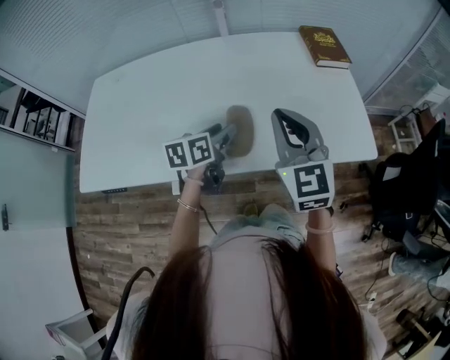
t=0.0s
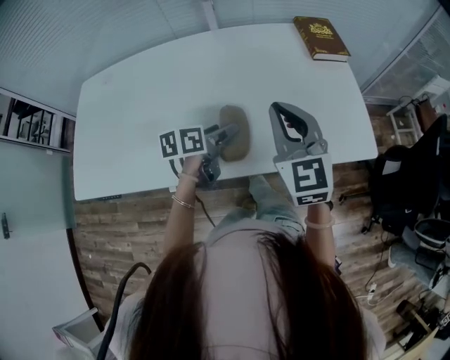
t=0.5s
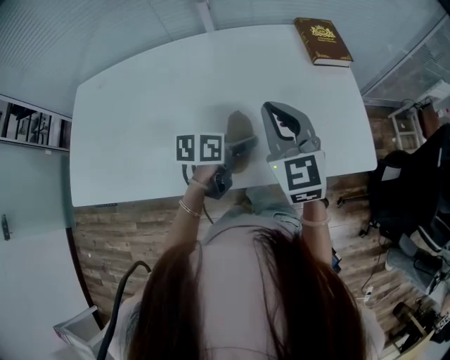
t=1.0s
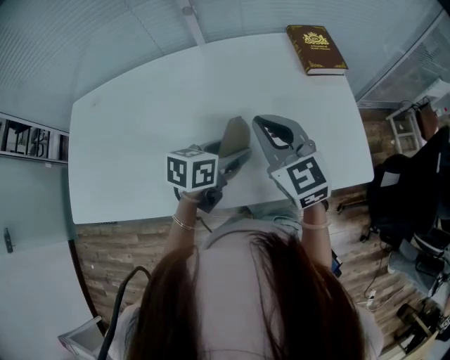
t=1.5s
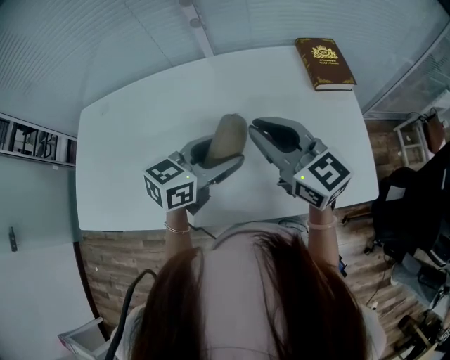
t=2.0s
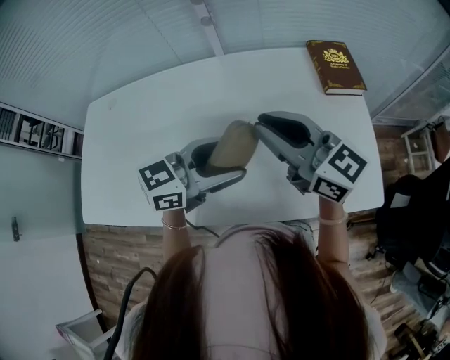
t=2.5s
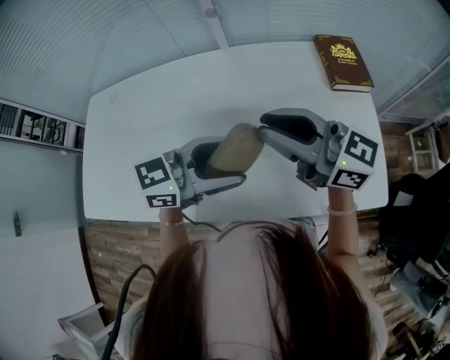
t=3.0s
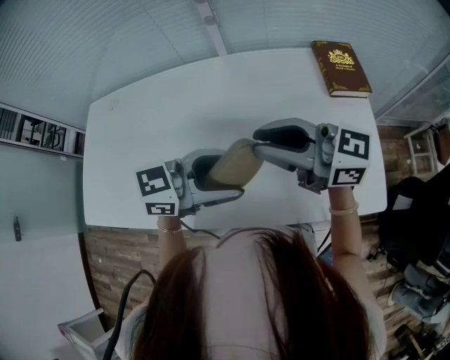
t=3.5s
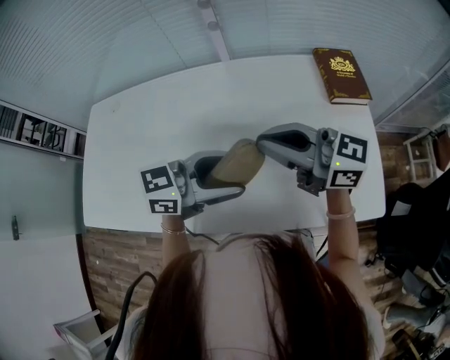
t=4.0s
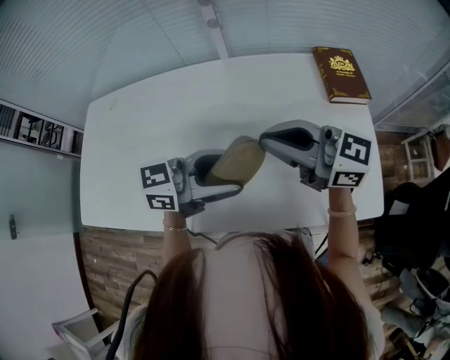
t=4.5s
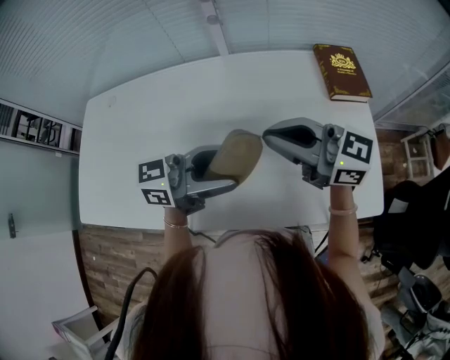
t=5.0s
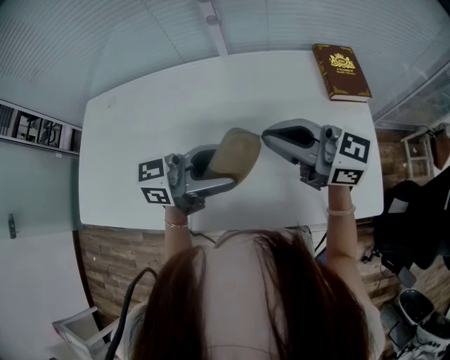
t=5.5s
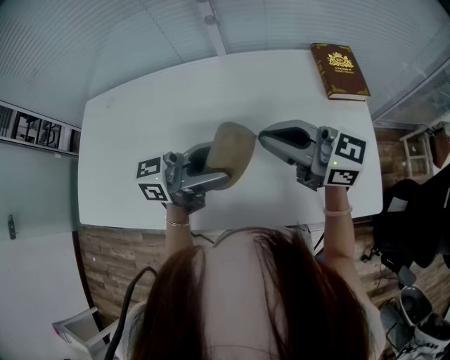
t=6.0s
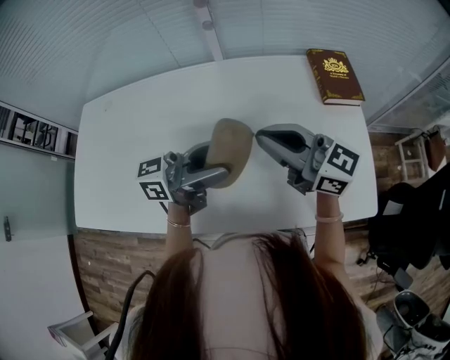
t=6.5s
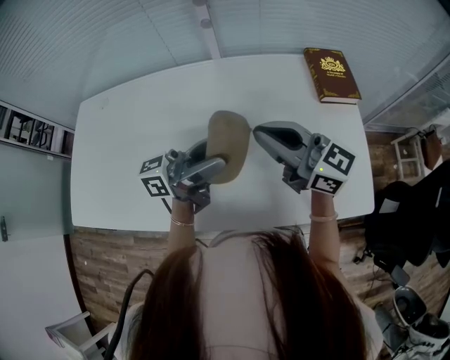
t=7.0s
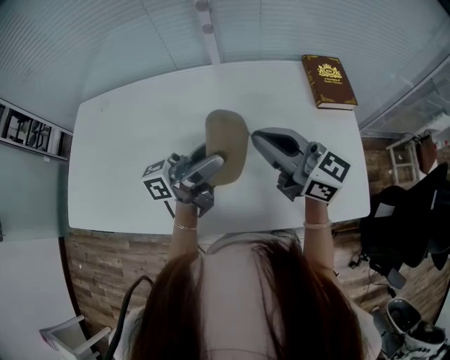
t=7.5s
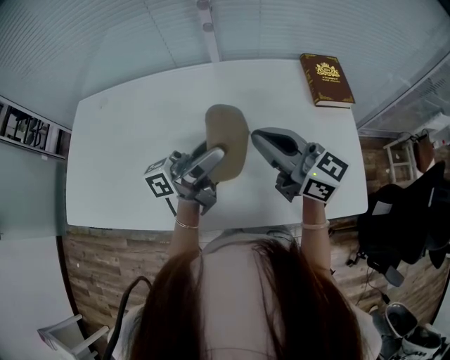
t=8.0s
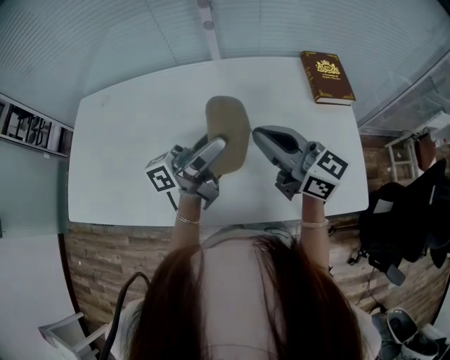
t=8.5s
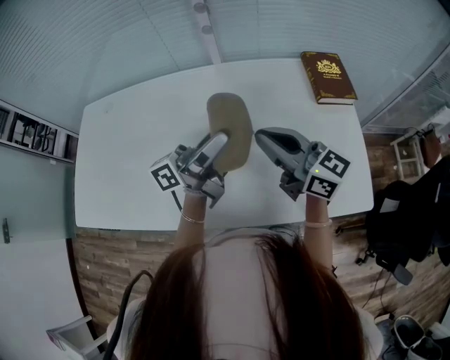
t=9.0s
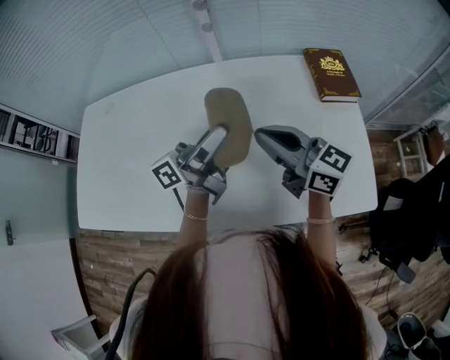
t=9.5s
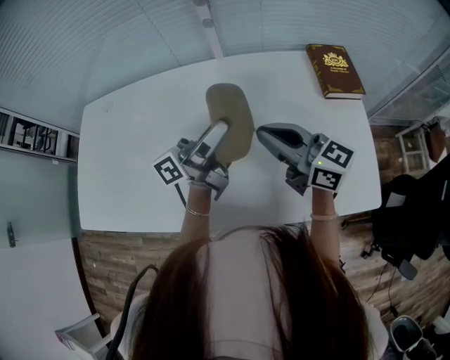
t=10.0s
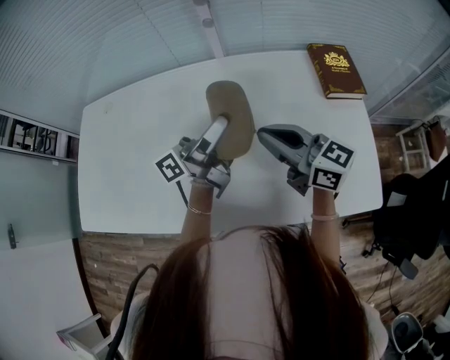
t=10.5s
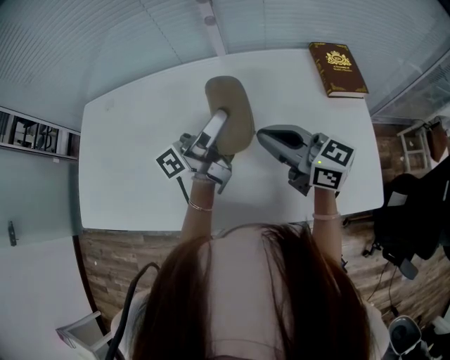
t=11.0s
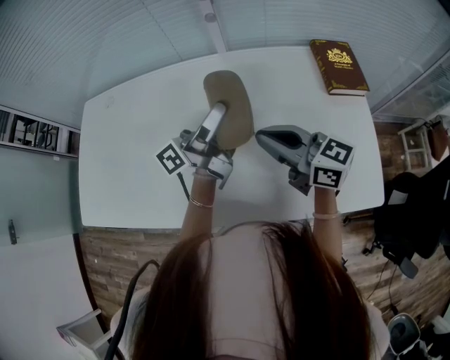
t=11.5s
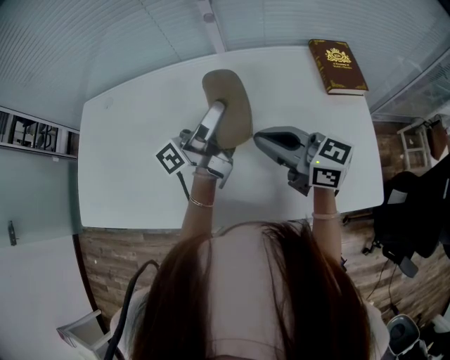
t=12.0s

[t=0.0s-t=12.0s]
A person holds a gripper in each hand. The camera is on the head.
t=0.0s to t=2.0s: The left gripper is displaced forward, upward and to the right by some 15 cm, and changes its angle by some 30 degrees; the right gripper heads forward, covering approximately 15 cm, and swivels about 30 degrees.
t=2.0s to t=4.0s: The right gripper changes its angle by about 30 degrees, while the left gripper rotates approximately 20 degrees.
t=4.0s to t=6.0s: The left gripper swivels some 20 degrees.
t=6.0s to t=8.0s: The left gripper turns by about 30 degrees.
t=8.0s to t=10.0s: The left gripper goes about 5 cm forward.
t=10.0s to t=12.0s: There are only small adjustments of the grippers.

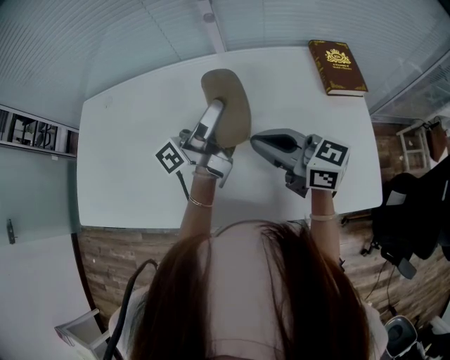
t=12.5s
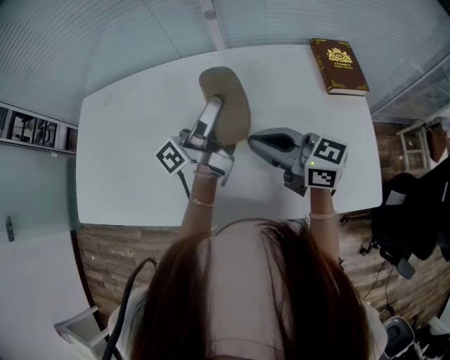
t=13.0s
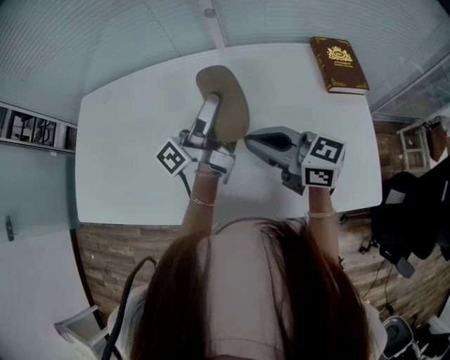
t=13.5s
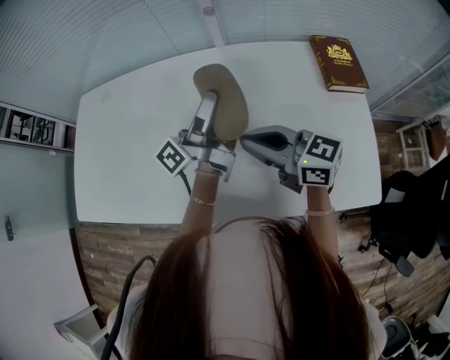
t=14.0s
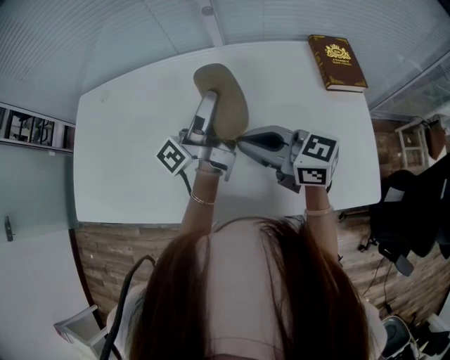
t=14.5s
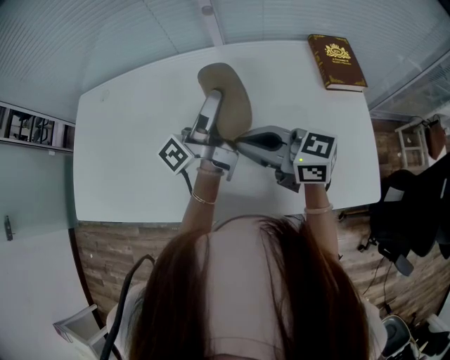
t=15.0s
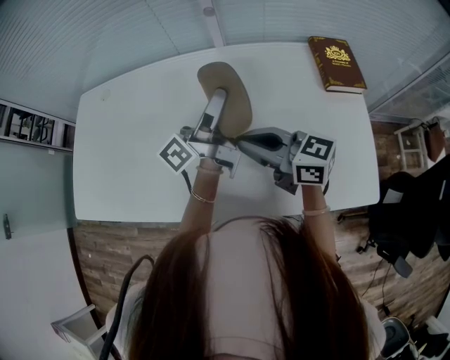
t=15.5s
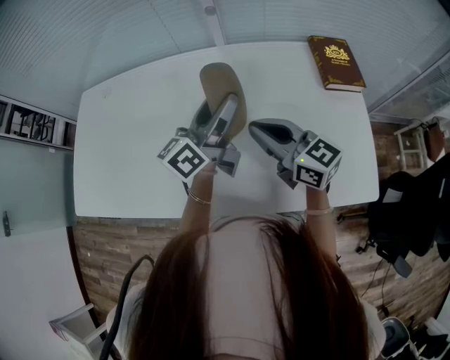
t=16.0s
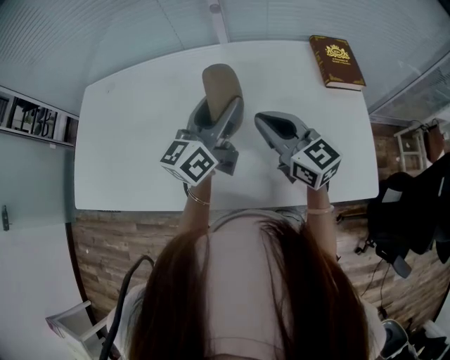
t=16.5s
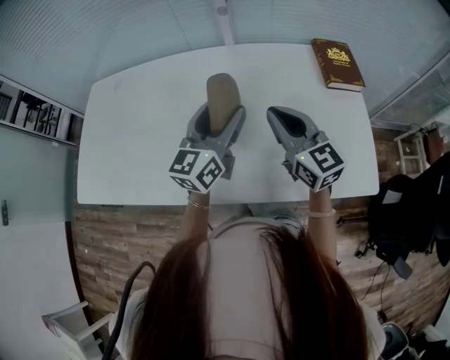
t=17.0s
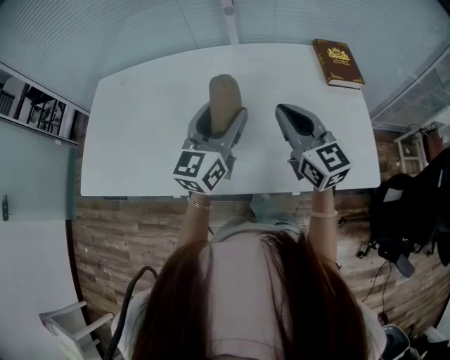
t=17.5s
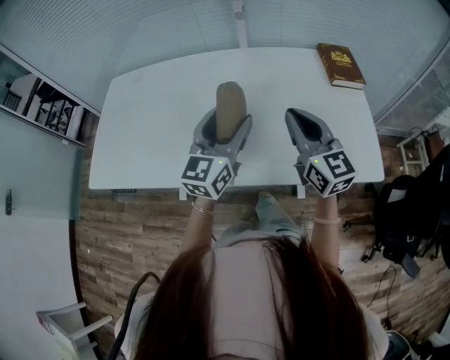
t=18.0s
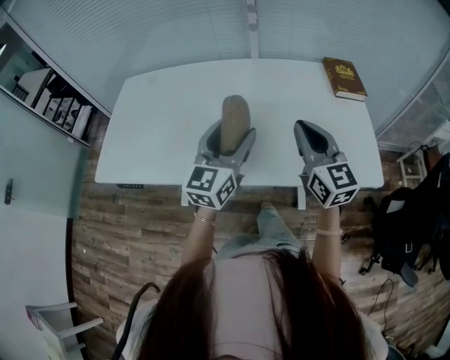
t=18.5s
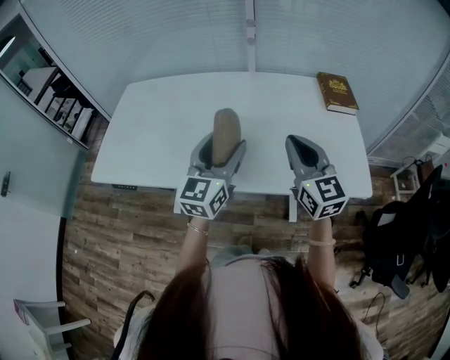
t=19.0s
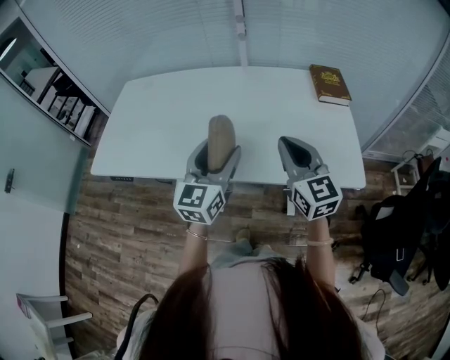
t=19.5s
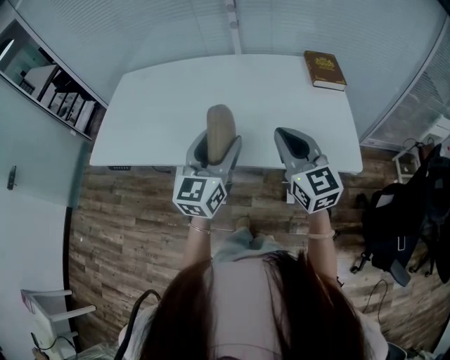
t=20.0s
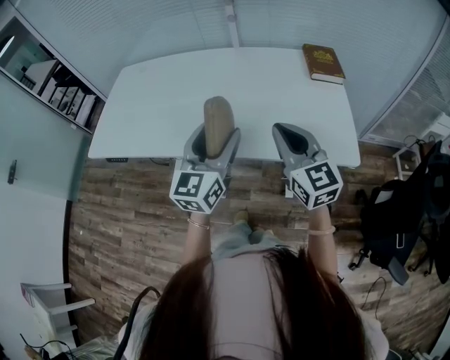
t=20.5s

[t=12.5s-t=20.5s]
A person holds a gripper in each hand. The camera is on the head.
t=12.5s to t=14.5s: The grippers move only a little.
t=14.5s to t=16.5s: The left gripper rotates around the line of its fingers by approximately 50 degrees, clockwise from behind. Meanwhile the right gripper swivels some 30 degrees.
t=16.5s to t=18.5s: The left gripper is displaced backward and to the left by about 20 cm, and changes its angle by approximately 30 degrees; the right gripper is displaced backward and upward by roughly 15 cm, and swivels approximately 20 degrees.
t=18.5s to t=20.5s: Both grippers travel together backward and to the right, some 10 cm.

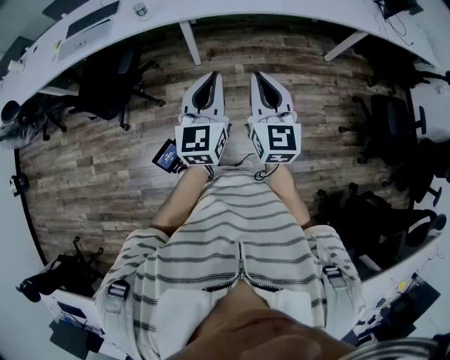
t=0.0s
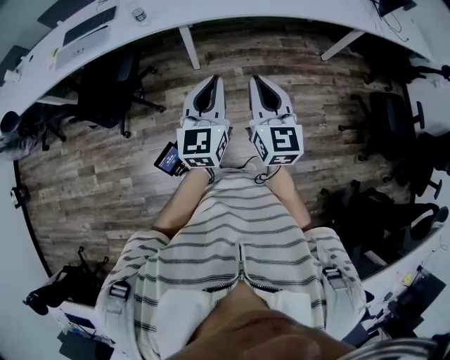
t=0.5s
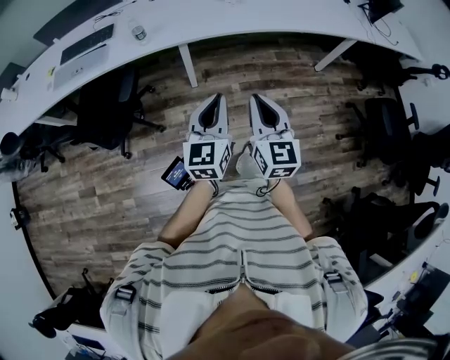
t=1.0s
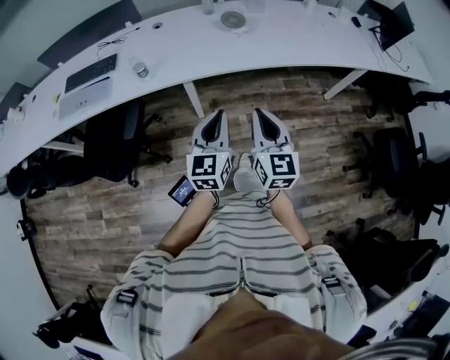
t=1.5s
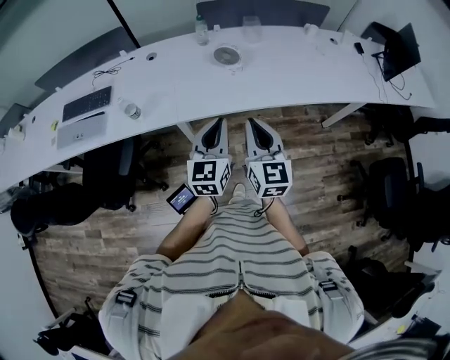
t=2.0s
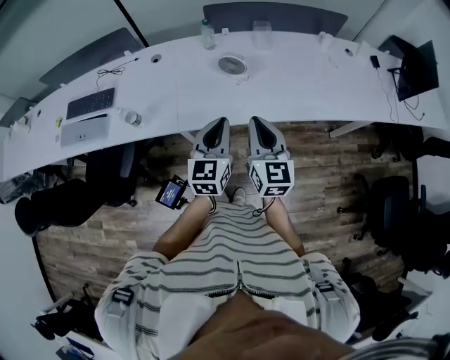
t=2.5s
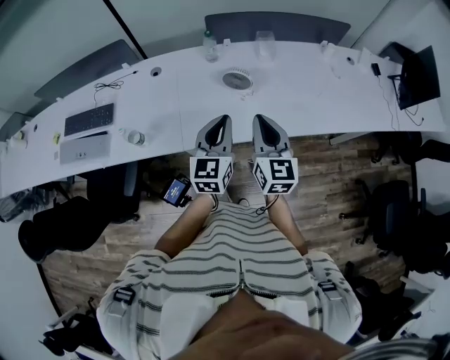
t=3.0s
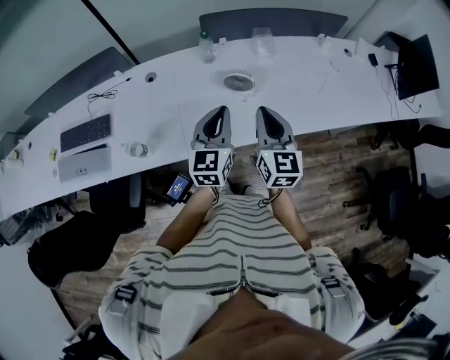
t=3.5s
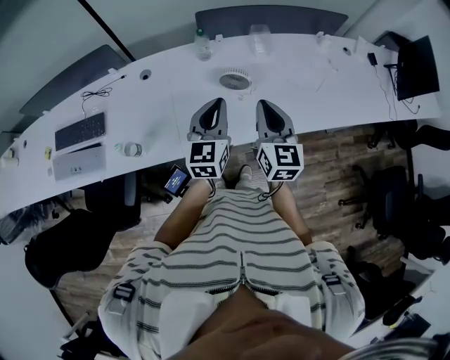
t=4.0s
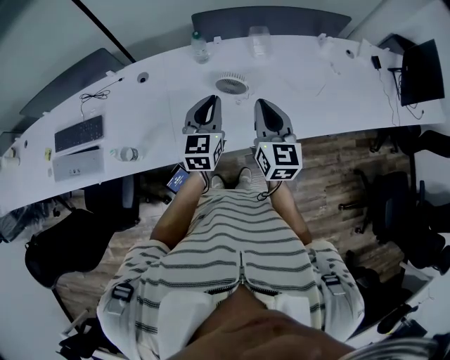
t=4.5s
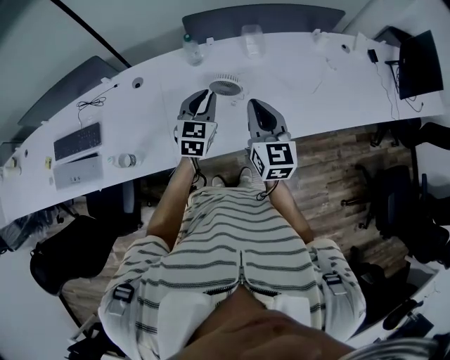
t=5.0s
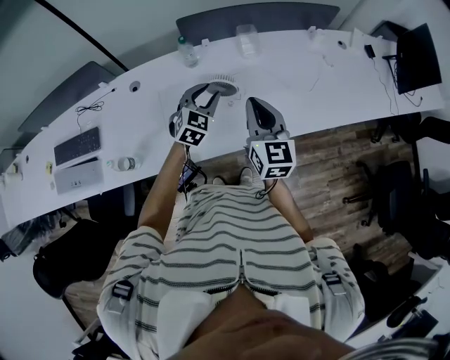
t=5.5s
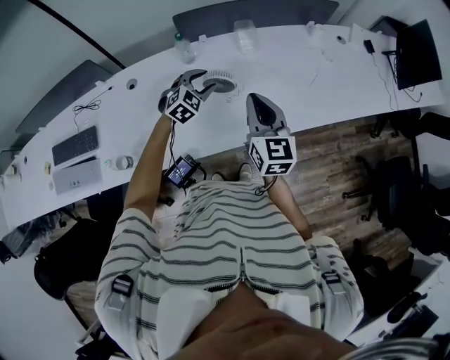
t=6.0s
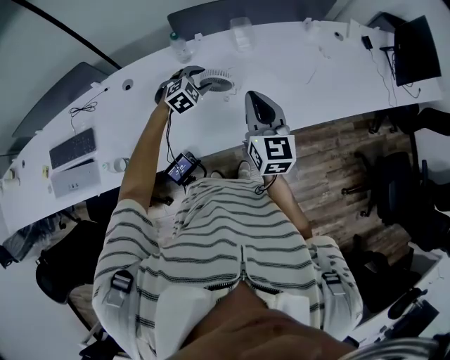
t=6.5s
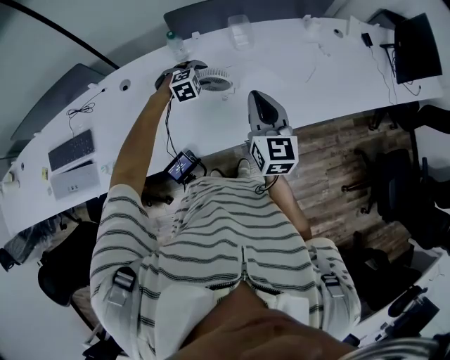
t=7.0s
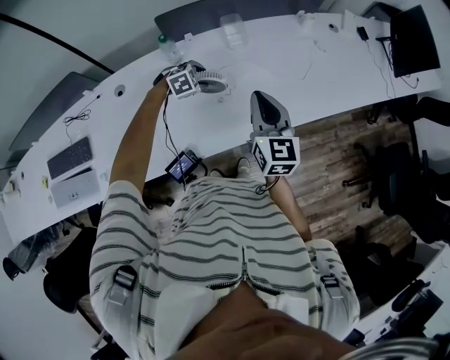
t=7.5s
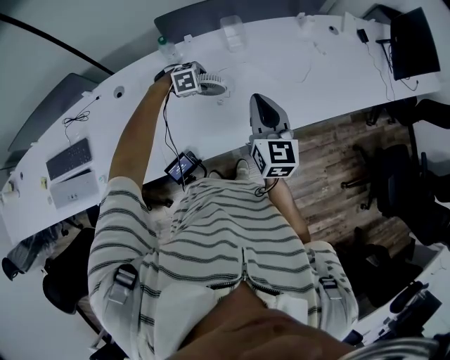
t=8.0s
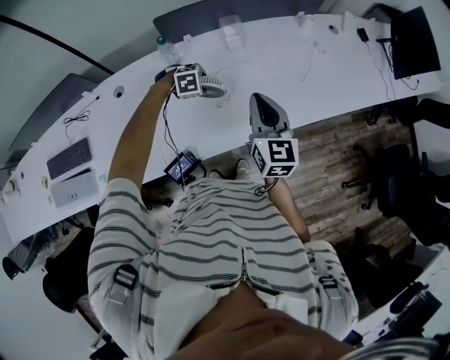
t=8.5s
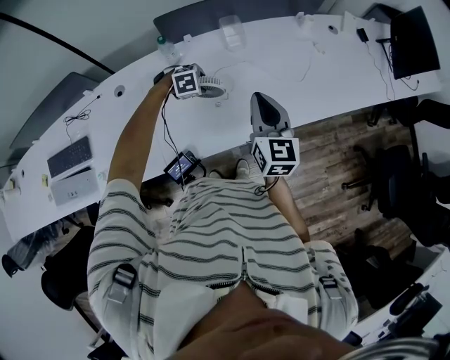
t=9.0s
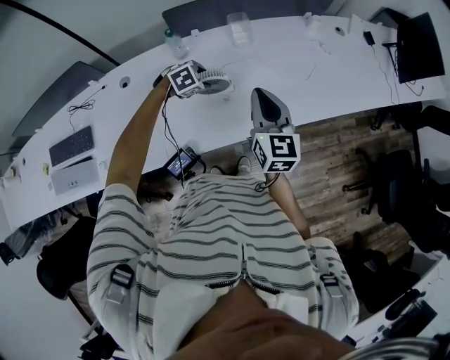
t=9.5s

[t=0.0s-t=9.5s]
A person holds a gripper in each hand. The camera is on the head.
t=0.0s to t=2.0s: Both grippers travel together forward, roughly 35 cm.
t=2.0s to t=4.0s: The grippers both shift forward by about 25 cm.
t=4.0s to t=5.5s: The left gripper shifts roughly 15 cm forward and downward, turns by about 40 degrees, and opens up; the right gripper shifts by about 5 cm.
t=5.5s to t=7.5s: The left gripper travels downward and forward by approximately 15 cm, points its fingers roughly 40 degrees further downward, and opens up.
t=7.5s to t=9.5s: The grippers stay close to where they were, moving slightly.
